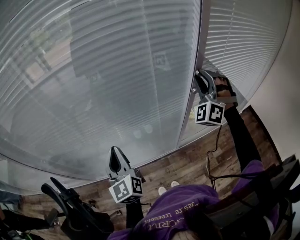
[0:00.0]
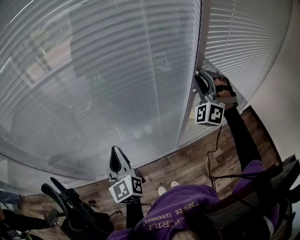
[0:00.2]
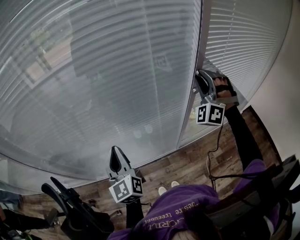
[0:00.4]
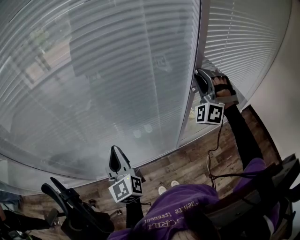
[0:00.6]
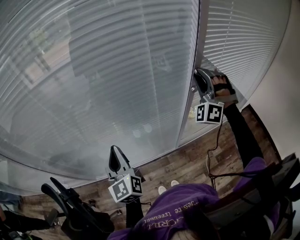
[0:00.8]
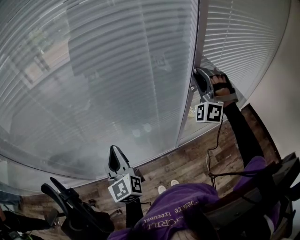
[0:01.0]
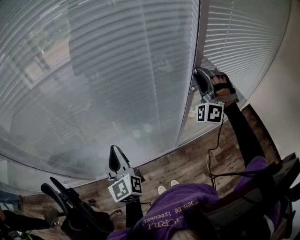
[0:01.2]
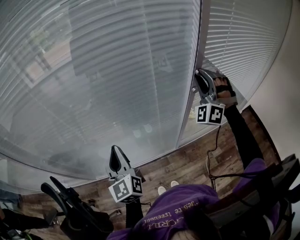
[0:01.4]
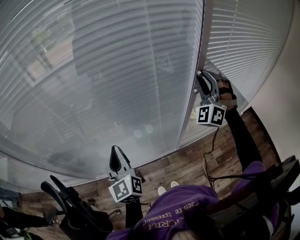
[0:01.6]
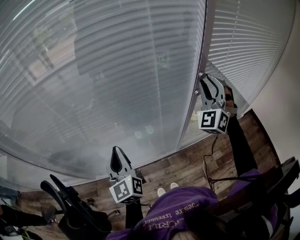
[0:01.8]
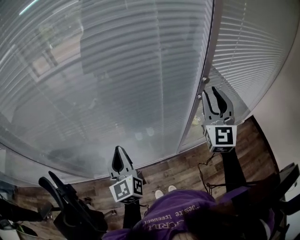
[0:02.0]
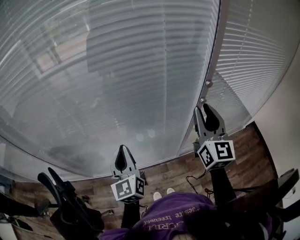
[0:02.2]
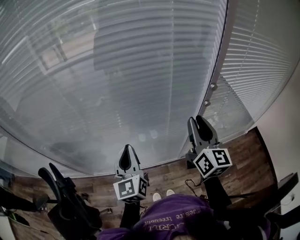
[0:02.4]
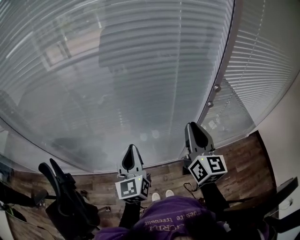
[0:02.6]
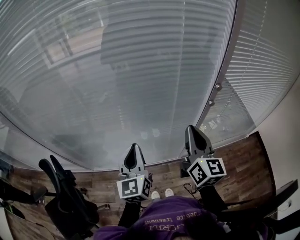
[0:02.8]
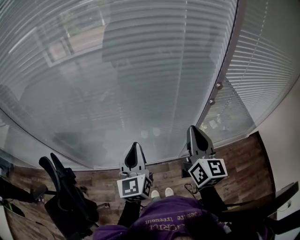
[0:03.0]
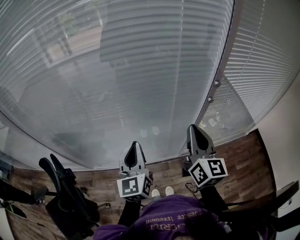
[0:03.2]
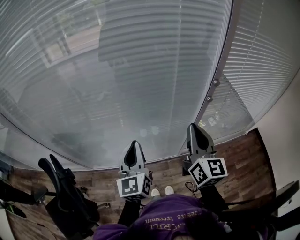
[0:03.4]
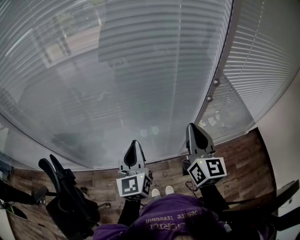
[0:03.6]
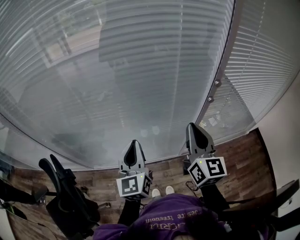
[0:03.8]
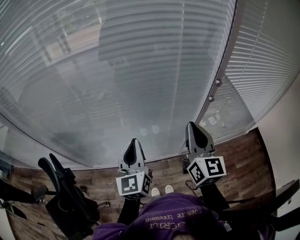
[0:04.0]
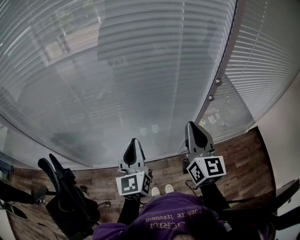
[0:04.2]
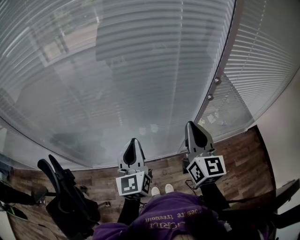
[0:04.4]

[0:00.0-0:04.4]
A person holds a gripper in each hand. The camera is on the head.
0:00.0 to 0:01.4: The grippers stay close to where they were, moving slightly.
0:01.4 to 0:03.0: The left gripper shifts by about 5 cm. Meanwhile the right gripper moves backward and to the left, about 20 cm, rolls clockwise, seen from behind, by roughly 100 degrees, and closes up.
0:03.0 to 0:04.4: There are only small adjustments of the grippers.

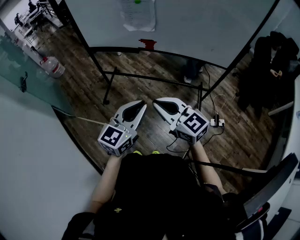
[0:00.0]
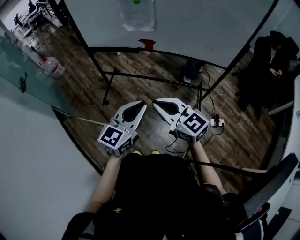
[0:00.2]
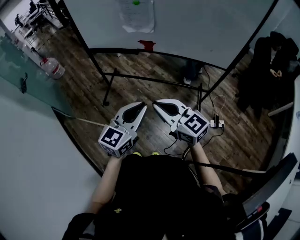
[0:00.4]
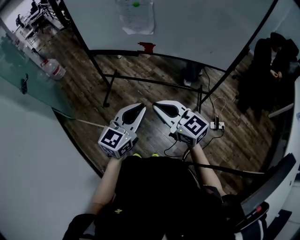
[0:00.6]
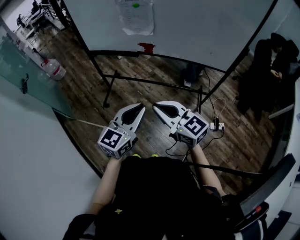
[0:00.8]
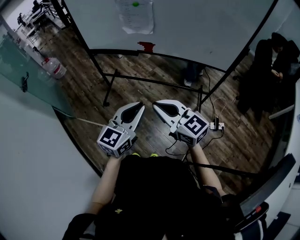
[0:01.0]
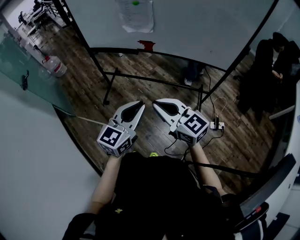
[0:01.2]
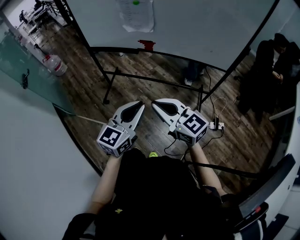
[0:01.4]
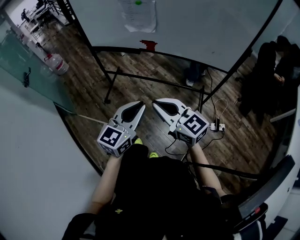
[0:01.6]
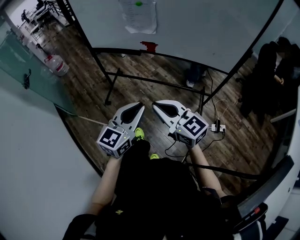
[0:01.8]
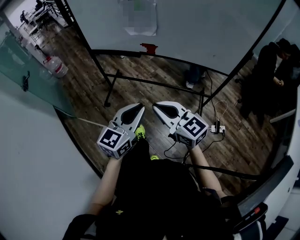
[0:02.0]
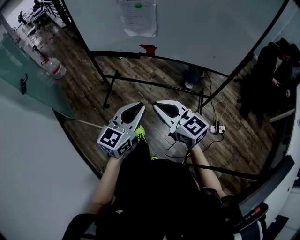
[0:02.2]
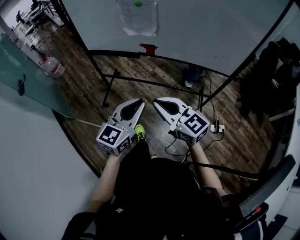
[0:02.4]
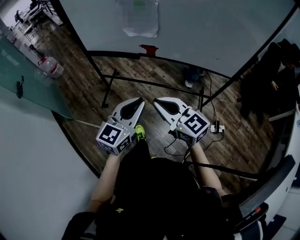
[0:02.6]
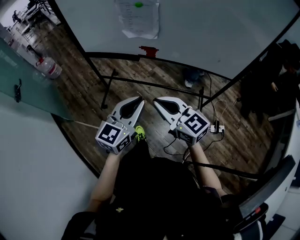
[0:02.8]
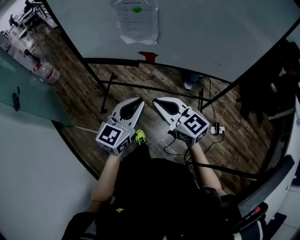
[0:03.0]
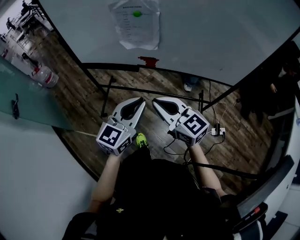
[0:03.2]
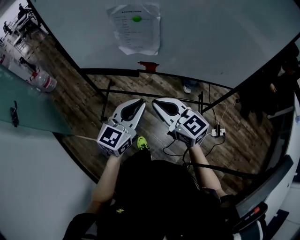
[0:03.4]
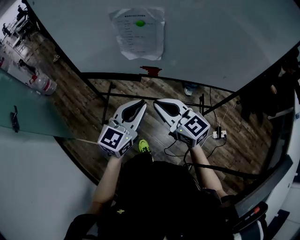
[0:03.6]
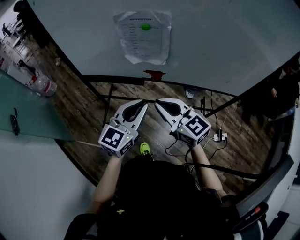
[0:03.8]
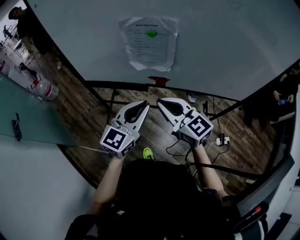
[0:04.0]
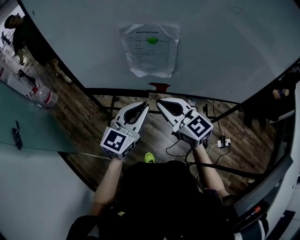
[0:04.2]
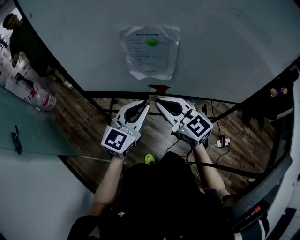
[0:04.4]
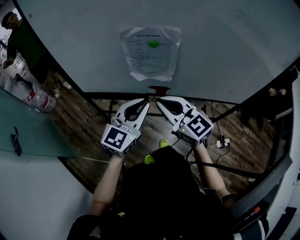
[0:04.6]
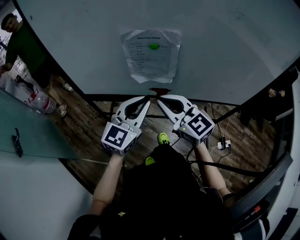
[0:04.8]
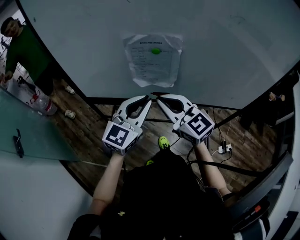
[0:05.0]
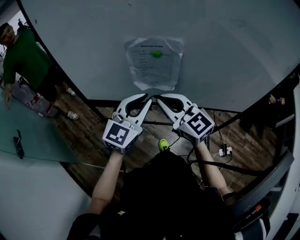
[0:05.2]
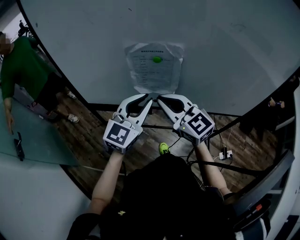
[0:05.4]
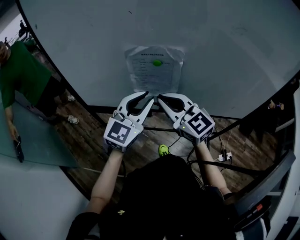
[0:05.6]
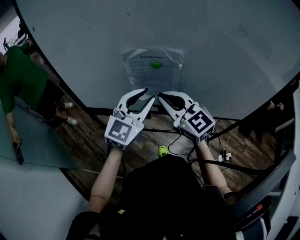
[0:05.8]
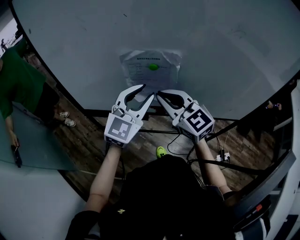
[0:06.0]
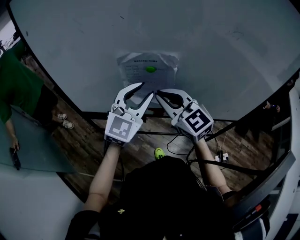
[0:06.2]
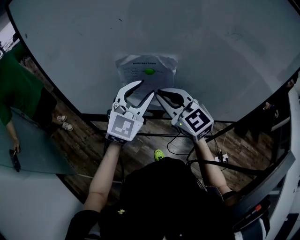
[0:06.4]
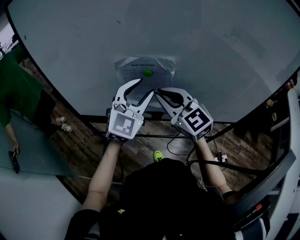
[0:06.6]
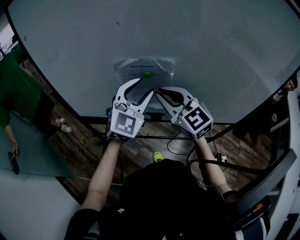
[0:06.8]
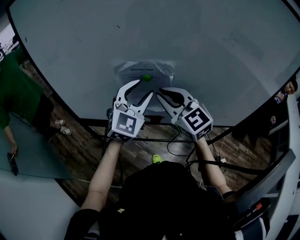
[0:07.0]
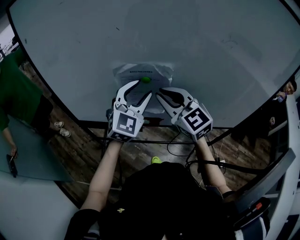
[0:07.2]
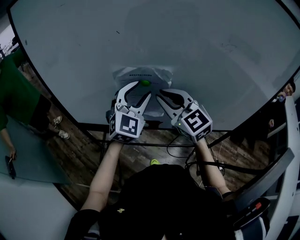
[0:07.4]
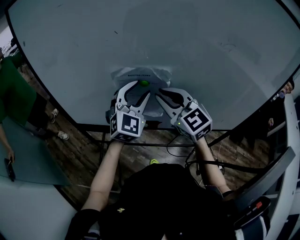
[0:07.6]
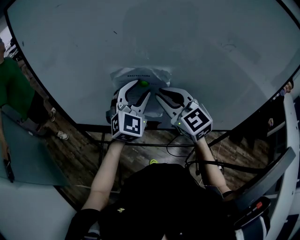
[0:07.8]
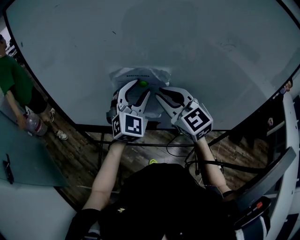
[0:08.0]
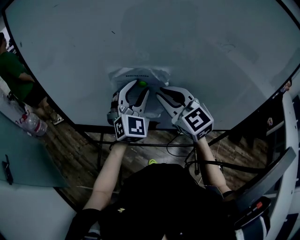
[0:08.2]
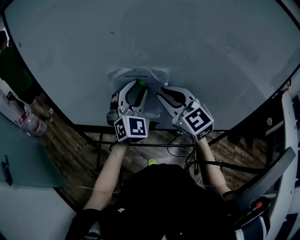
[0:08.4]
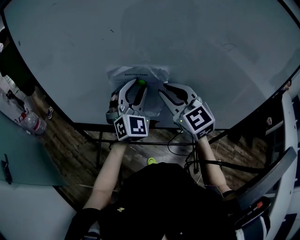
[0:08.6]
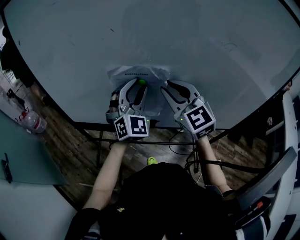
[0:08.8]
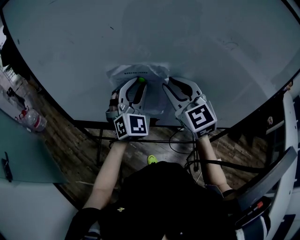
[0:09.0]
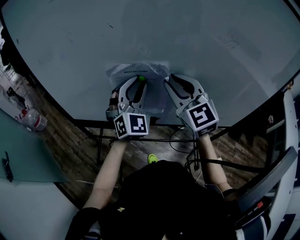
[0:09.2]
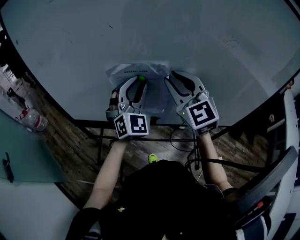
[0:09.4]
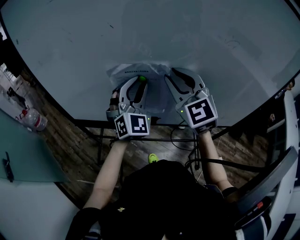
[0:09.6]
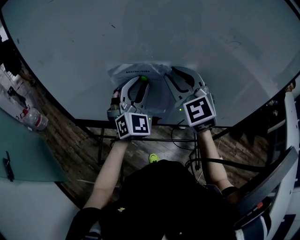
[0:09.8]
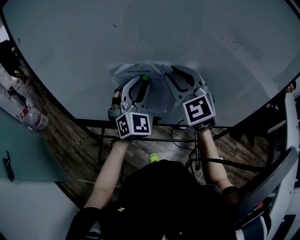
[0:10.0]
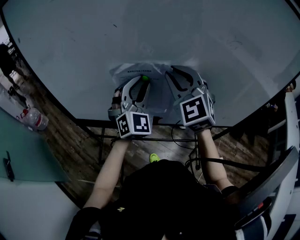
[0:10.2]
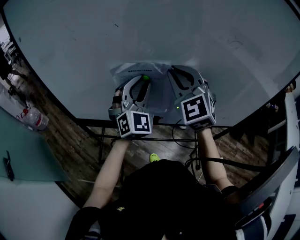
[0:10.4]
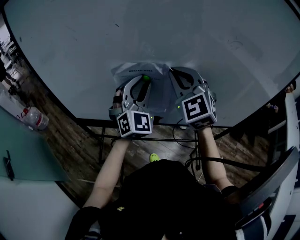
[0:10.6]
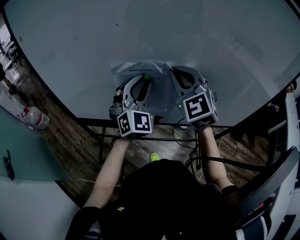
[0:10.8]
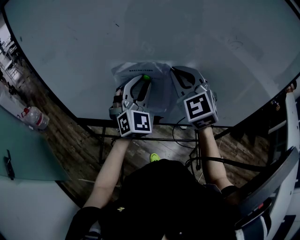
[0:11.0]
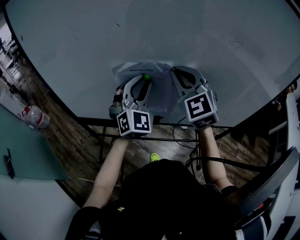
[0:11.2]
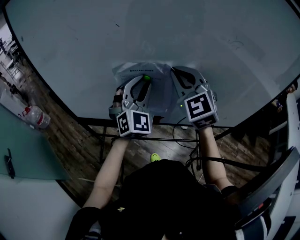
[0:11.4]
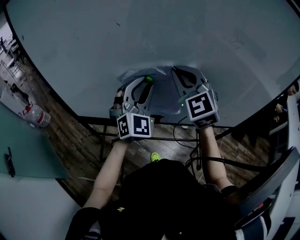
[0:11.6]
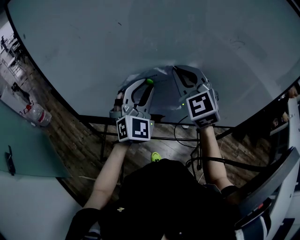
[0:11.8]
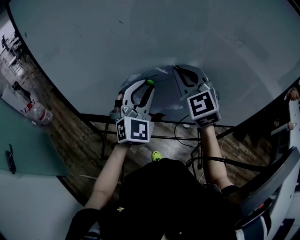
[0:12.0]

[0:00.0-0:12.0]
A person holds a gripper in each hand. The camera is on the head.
0:00.0 to 0:01.6: There are only small adjustments of the grippers.
0:01.6 to 0:03.0: The grippers both shift forward by roughly 15 cm.
0:03.0 to 0:04.4: The two grippers go roughly 20 cm forward.
0:04.4 to 0:06.0: Both grippers travel together forward and upward, some 10 cm. The left gripper opens up.
0:06.0 to 0:07.6: The left gripper moves forward, some 10 cm. Meanwhile the right gripper shifts by roughly 5 cm.
0:07.6 to 0:09.0: The grippers move only a little.
0:09.0 to 0:12.0: The grippers make only small movements.

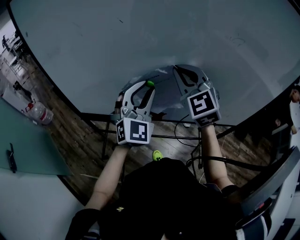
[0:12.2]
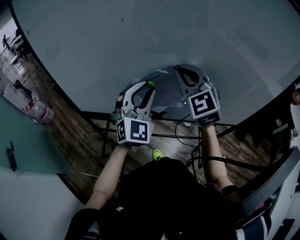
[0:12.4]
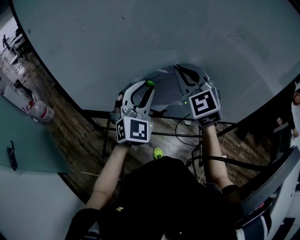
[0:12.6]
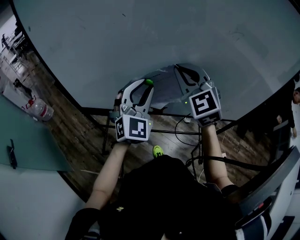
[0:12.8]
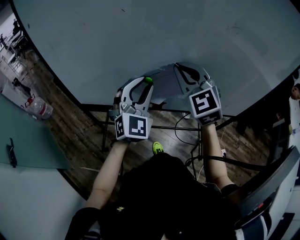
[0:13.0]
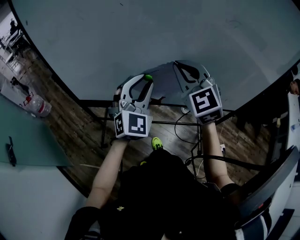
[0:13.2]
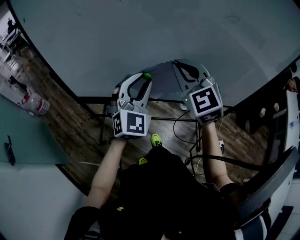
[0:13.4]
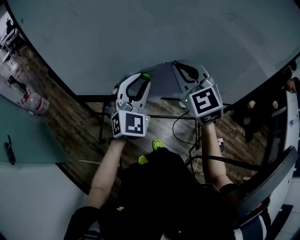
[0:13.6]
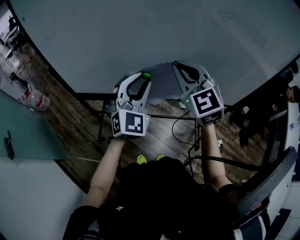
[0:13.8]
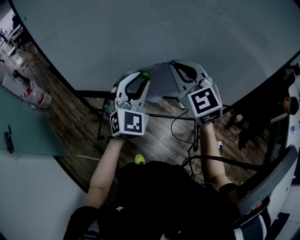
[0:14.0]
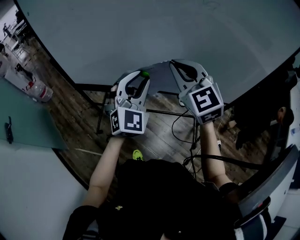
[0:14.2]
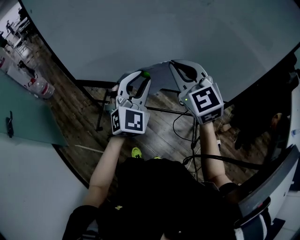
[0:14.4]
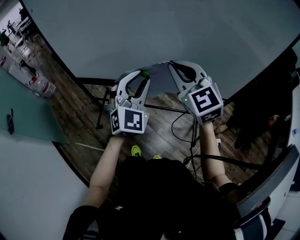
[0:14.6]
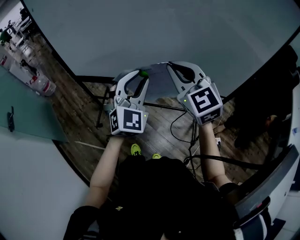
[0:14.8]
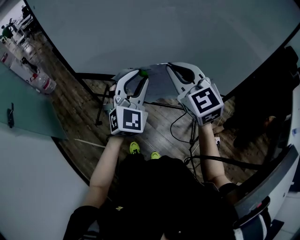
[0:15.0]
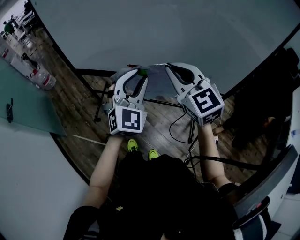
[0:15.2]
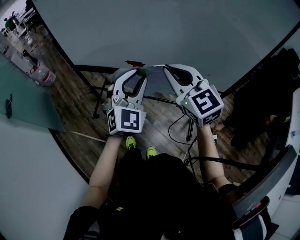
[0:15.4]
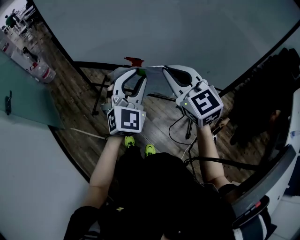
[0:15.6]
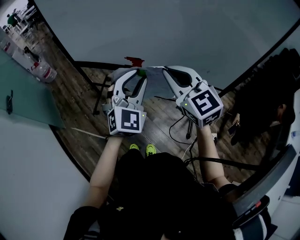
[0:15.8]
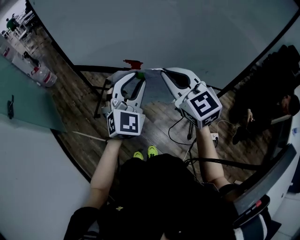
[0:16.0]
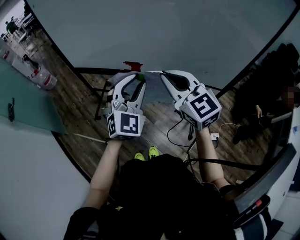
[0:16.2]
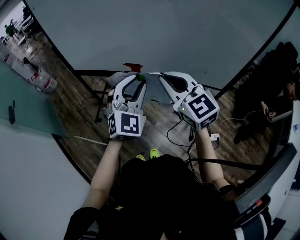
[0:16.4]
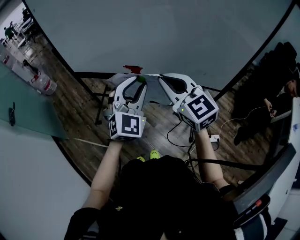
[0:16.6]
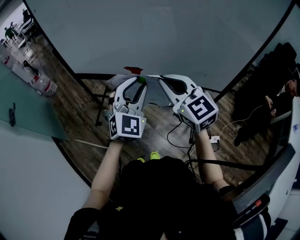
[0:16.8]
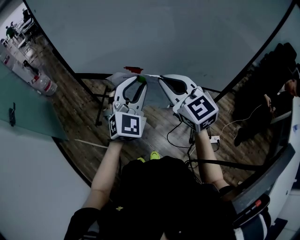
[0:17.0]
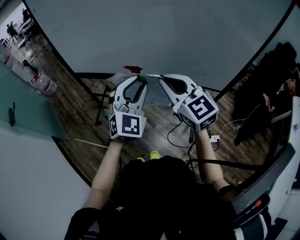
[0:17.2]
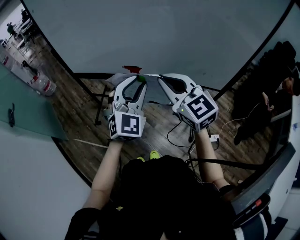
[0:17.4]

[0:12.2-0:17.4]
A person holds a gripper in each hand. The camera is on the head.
0:12.2 to 0:14.0: The two grippers go roughly 10 cm backward.
0:14.0 to 0:15.6: The grippers both shift backward and to the right by about 15 cm.
0:15.6 to 0:17.4: There are only small adjustments of the grippers.

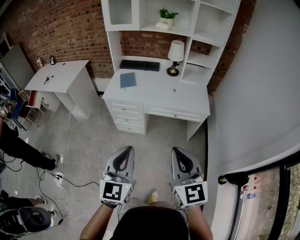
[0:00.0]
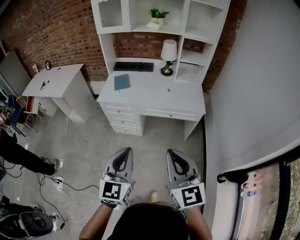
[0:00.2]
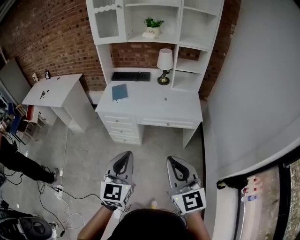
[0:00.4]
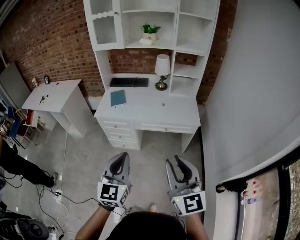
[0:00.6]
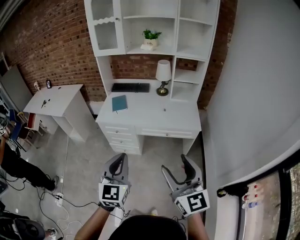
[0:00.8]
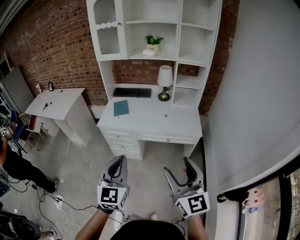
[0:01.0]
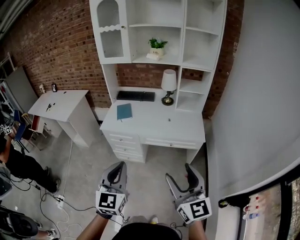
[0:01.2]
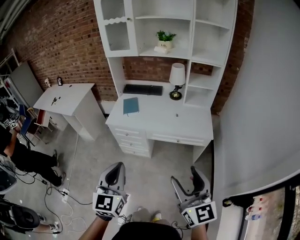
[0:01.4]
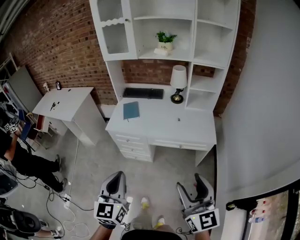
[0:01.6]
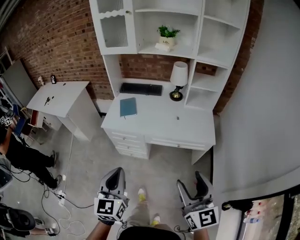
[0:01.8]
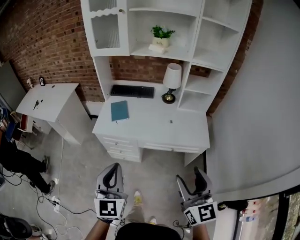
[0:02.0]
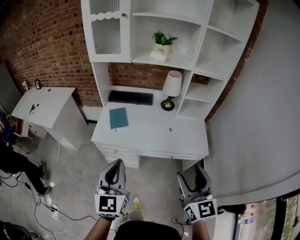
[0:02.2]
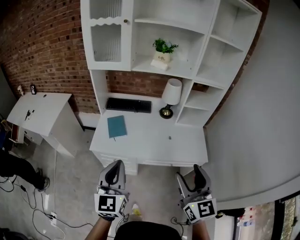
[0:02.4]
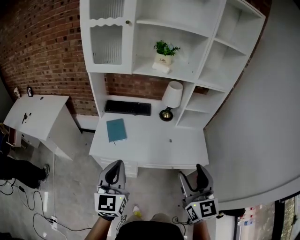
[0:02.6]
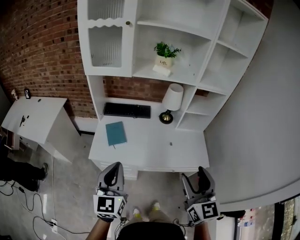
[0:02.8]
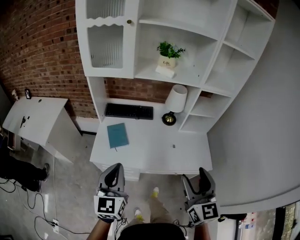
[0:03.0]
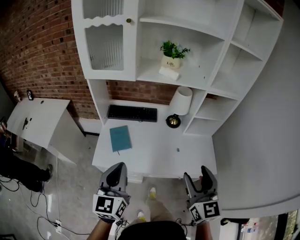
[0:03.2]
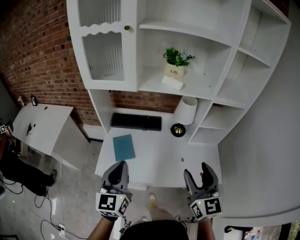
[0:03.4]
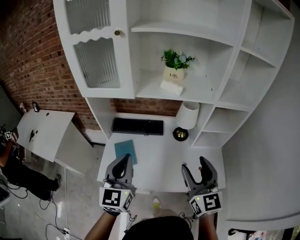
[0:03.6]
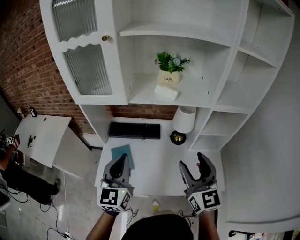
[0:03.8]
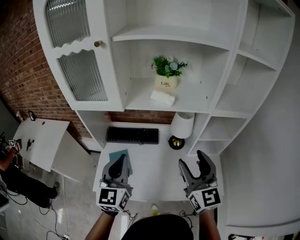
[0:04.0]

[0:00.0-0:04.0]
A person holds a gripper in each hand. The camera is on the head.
0:00.0 to 0:01.4: The left gripper shifts roughly 10 cm forward; the right gripper moves to the right and forward, about 10 cm, and opens its fingers.
0:01.4 to 0:02.6: Both grippers move forward, some 30 cm.
0:02.6 to 0:04.0: Both grippers move forward, roughly 30 cm.
